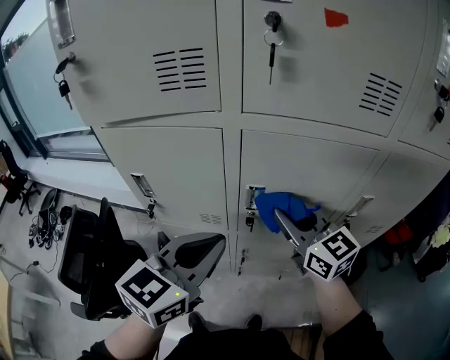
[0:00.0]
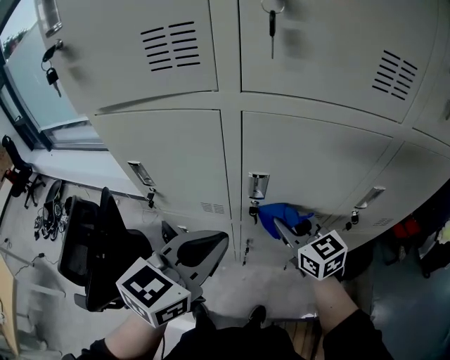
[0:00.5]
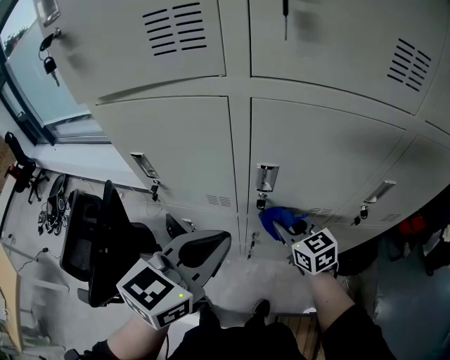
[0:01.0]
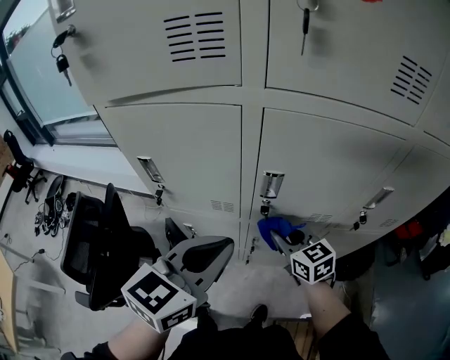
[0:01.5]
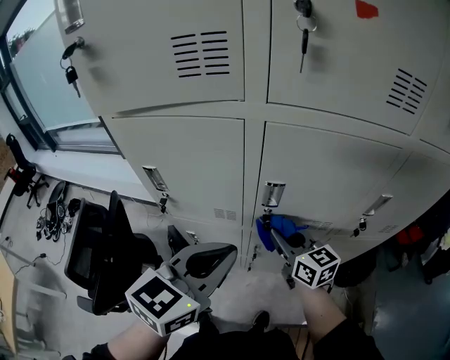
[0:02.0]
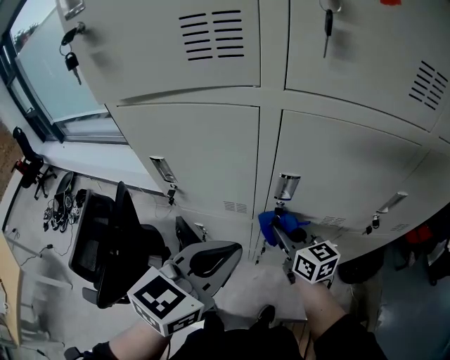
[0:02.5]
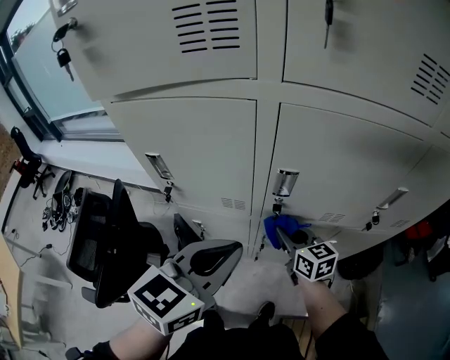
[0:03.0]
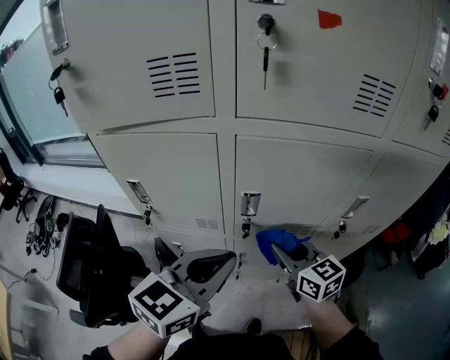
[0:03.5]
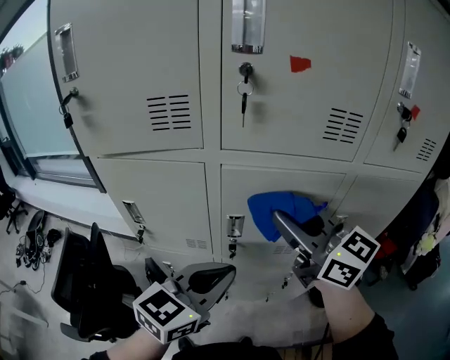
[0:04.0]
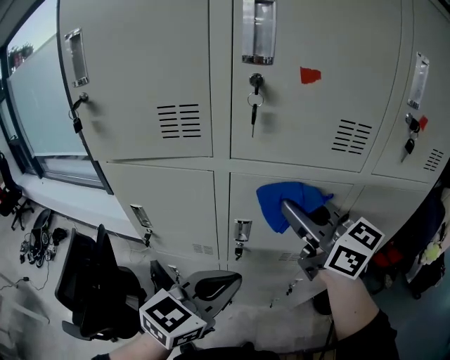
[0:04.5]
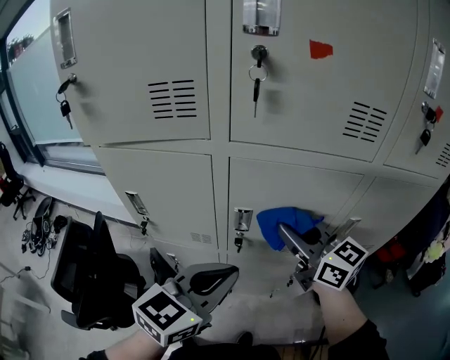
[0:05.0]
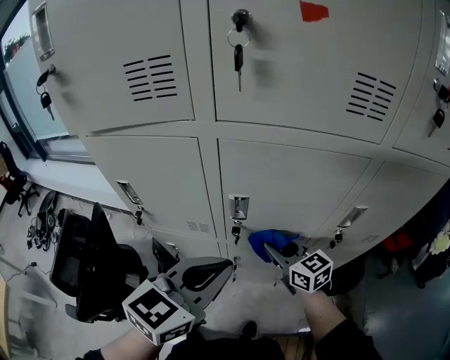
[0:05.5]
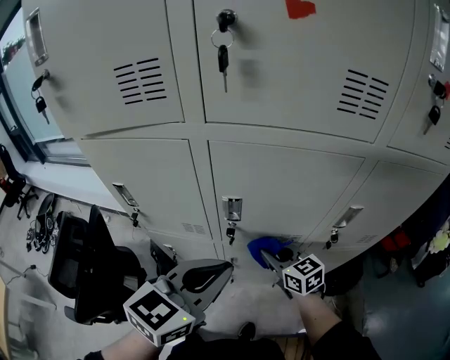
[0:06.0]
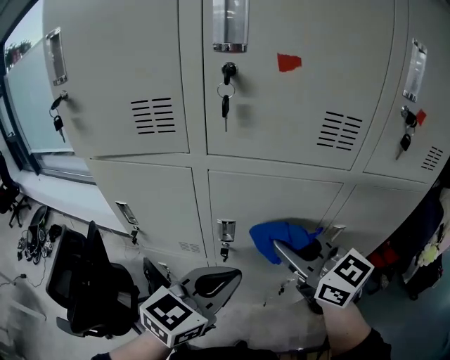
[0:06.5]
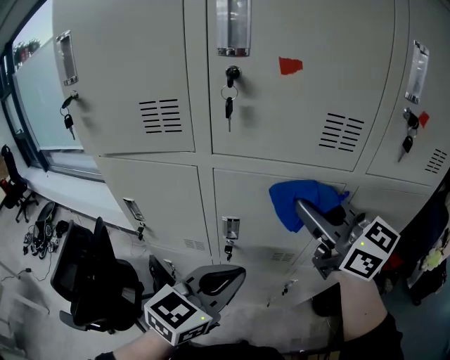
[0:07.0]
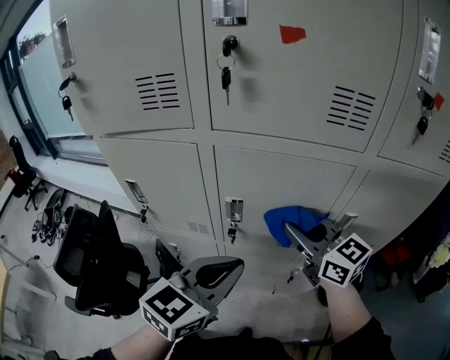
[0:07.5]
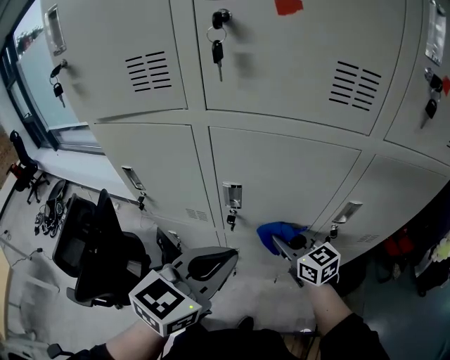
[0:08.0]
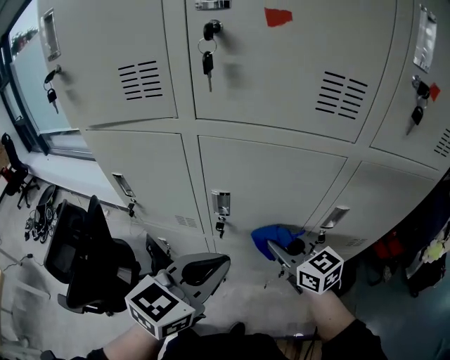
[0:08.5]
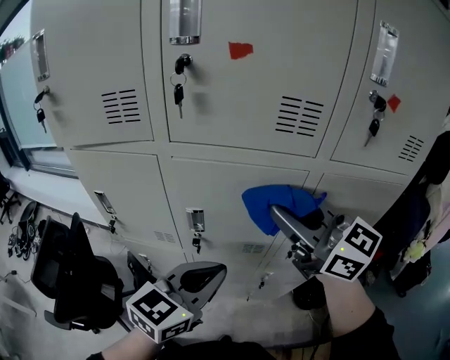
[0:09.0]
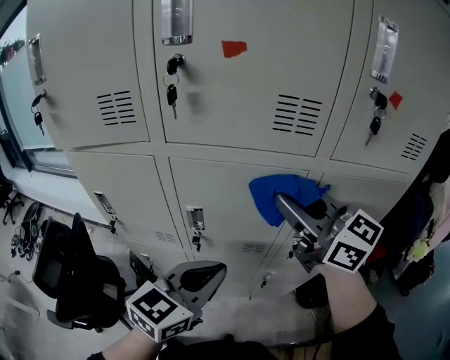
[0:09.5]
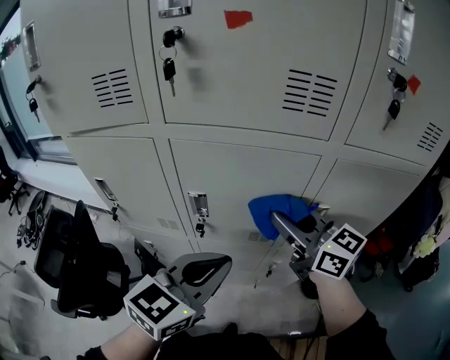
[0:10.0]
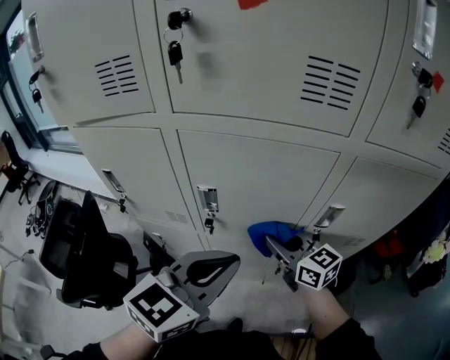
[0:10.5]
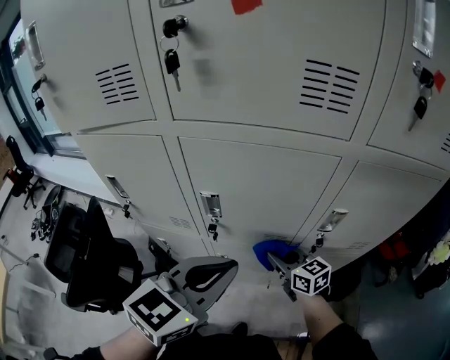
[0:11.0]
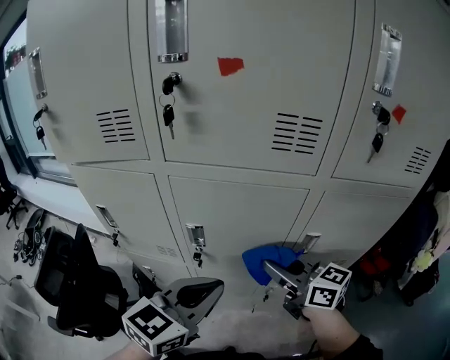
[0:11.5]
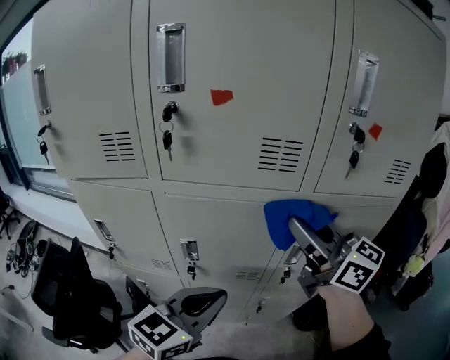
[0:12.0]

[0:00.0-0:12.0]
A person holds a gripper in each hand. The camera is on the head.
0:00.0 to 0:02.0: The right gripper moves downward, some 15 cm.
0:02.0 to 0:04.0: The left gripper shifts approximately 5 cm to the right. The right gripper is displaced upward by some 25 cm, and turns by roughly 20 degrees.
0:04.0 to 0:06.0: The right gripper travels downward by about 30 cm, and rotates approximately 30 degrees.
0:06.0 to 0:08.0: The right gripper goes upward and returns, approximately 35 cm each way.
0:08.0 to 0:10.0: The left gripper shifts roughly 5 cm to the right, while the right gripper shifts about 20 cm upward.
0:10.0 to 0:12.0: The right gripper is displaced upward by roughly 15 cm.

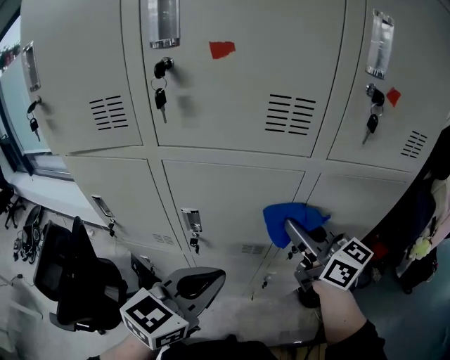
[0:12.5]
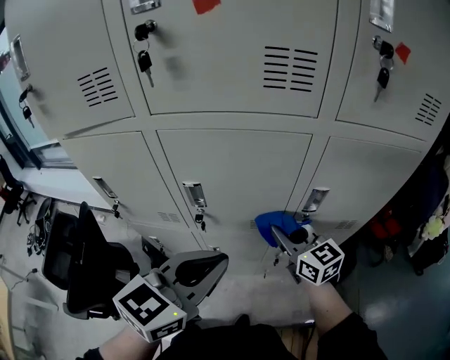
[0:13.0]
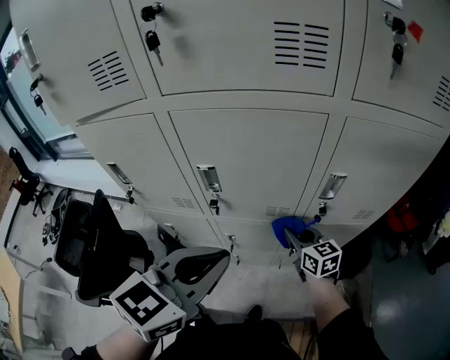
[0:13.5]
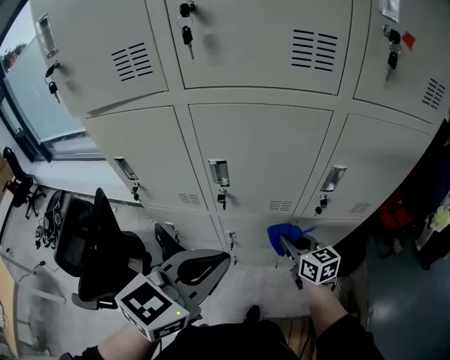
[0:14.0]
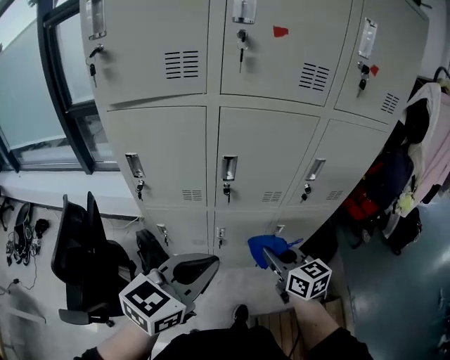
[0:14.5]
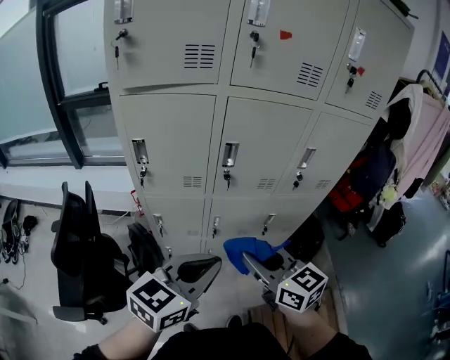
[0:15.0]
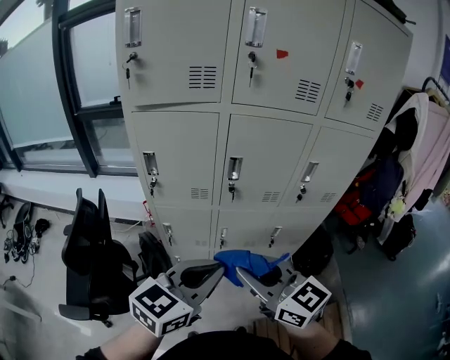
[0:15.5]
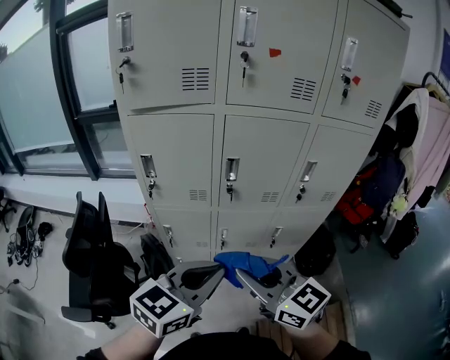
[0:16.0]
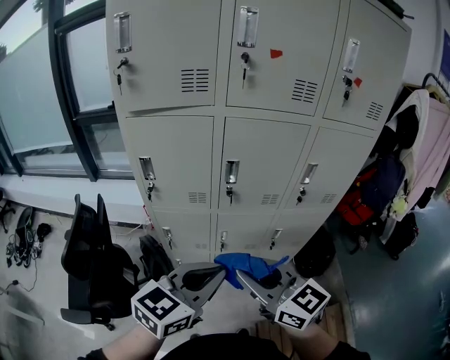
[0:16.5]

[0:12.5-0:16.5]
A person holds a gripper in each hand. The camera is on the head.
0:12.5 to 0:14.5: The left gripper travels backward and to the left by roughly 20 cm; the right gripper is displaced backward, downward and to the left by roughly 30 cm, and turns by about 30 degrees.
0:14.5 to 0:16.5: The right gripper moves backward, upward and to the left, about 20 cm, and changes its angle by some 20 degrees. Meanwhile the left gripper travels backward by some 5 cm.

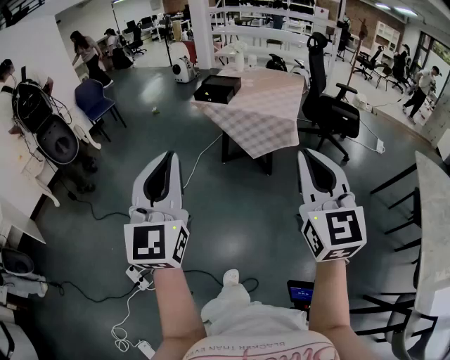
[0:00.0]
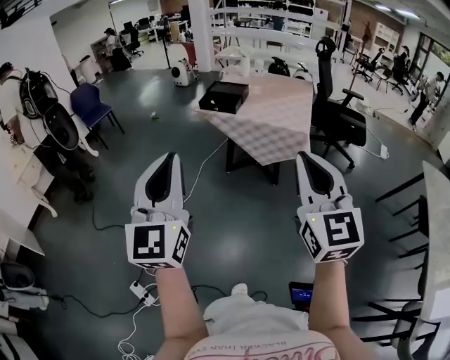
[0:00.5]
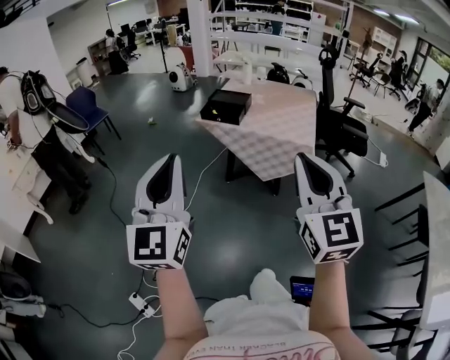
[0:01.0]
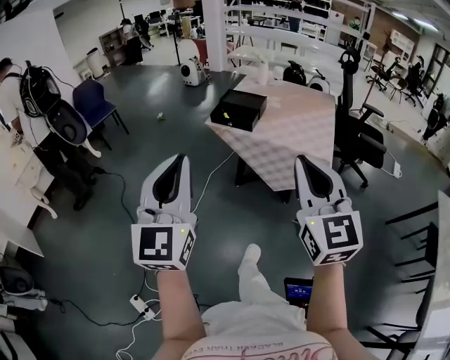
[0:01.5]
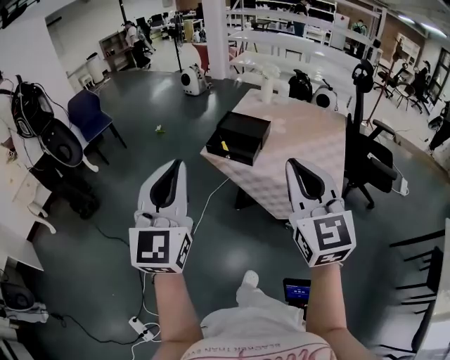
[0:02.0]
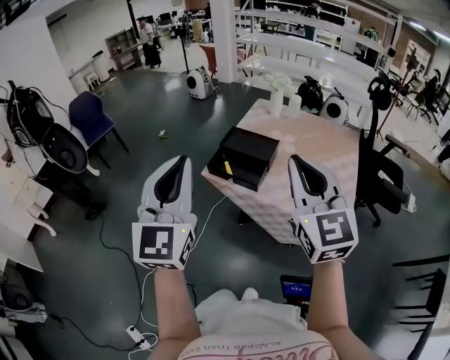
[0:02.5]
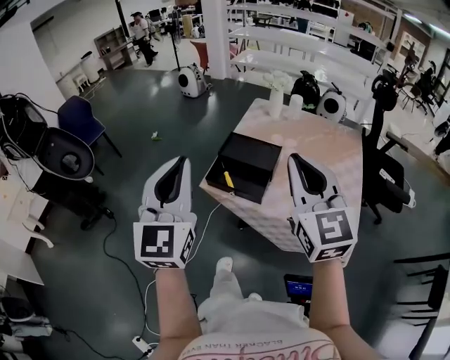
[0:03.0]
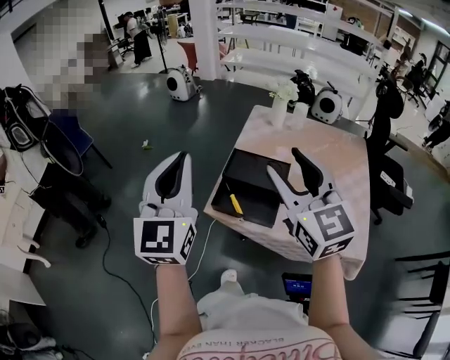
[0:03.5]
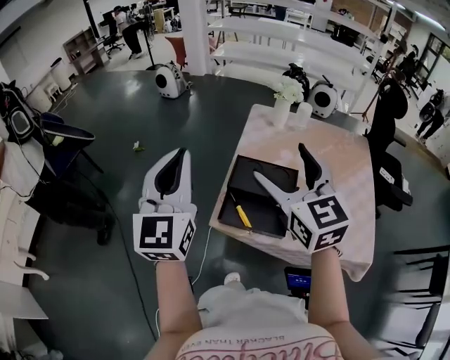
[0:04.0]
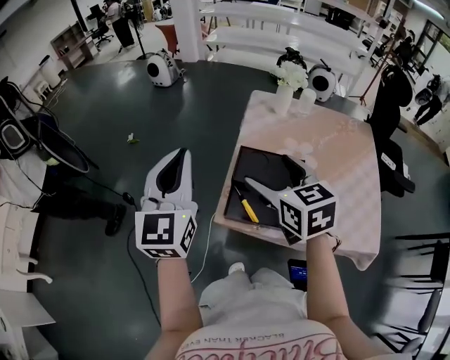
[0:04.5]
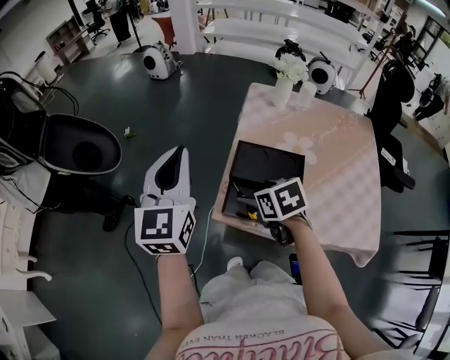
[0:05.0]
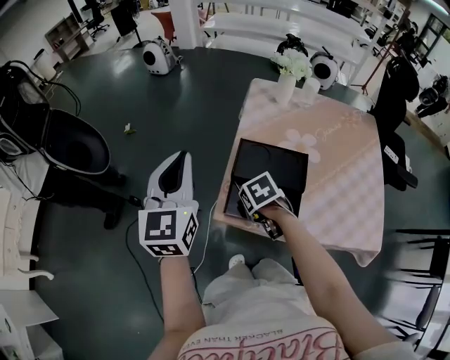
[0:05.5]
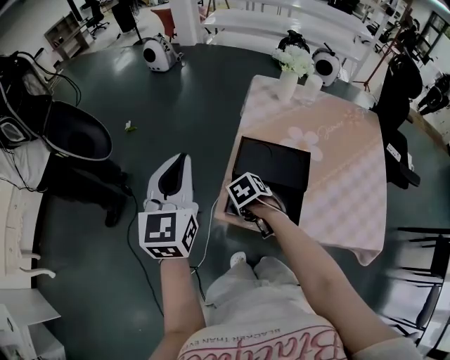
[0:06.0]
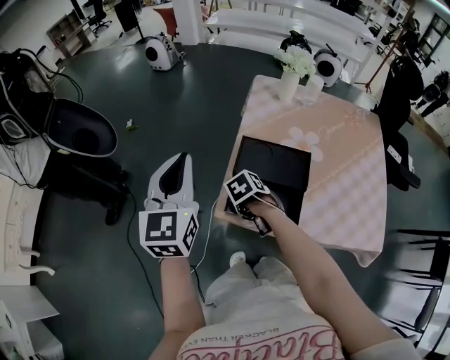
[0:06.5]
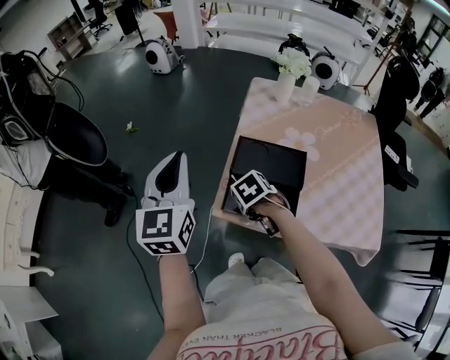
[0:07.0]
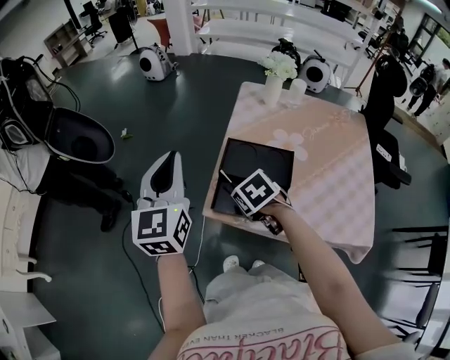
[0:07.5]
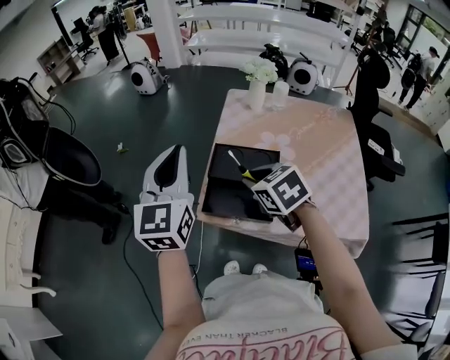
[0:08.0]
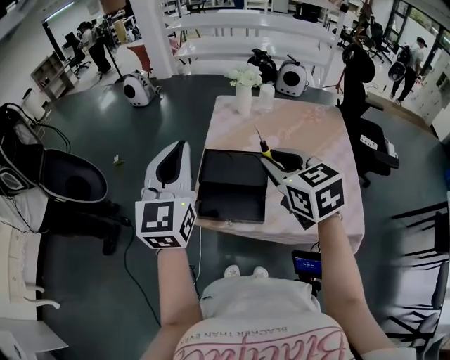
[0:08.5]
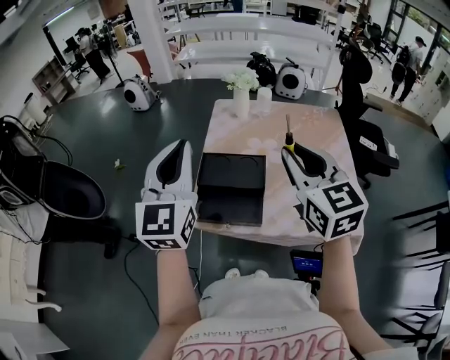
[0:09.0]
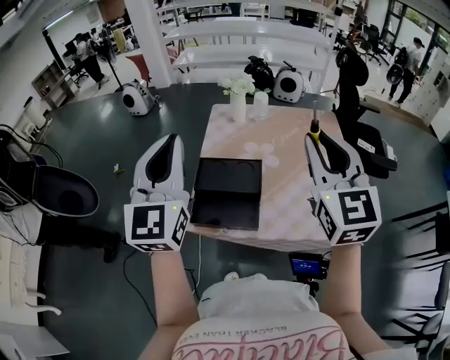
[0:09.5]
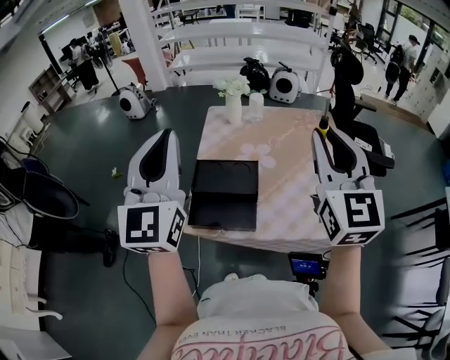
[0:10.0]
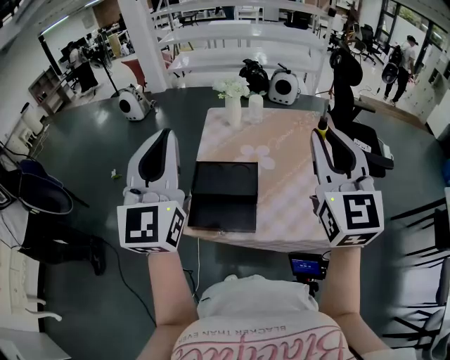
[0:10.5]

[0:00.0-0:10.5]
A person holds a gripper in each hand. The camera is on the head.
0:00.0 to 0:02.0: The two grippers travel together, forward, approximately 50 cm.
0:02.0 to 0:04.0: Both grippers are carried forward, about 40 cm. The right gripper opens.
0:04.0 to 0:06.5: The right gripper goes some 40 cm downward, tilts its fingers some 80 degrees downward, and closes its fingers. Meanwhile the left gripper goes some 10 cm downward.
0:06.5 to 0:08.5: The left gripper moves some 15 cm. The right gripper travels upward by roughly 30 cm, and points its fingers roughly 60 degrees further upward.
0:08.5 to 0:10.5: The left gripper moves upward, roughly 10 cm. Meanwhile the right gripper goes roughly 20 cm upward and to the right, and points its fingers approximately 30 degrees further upward.
